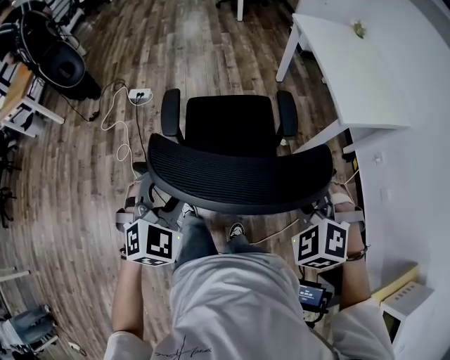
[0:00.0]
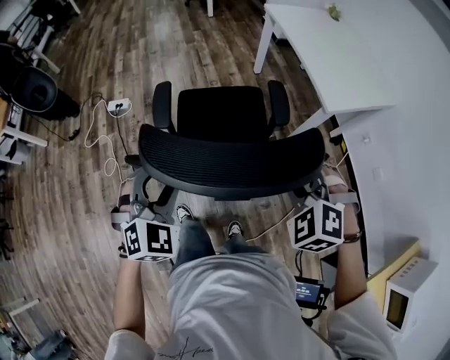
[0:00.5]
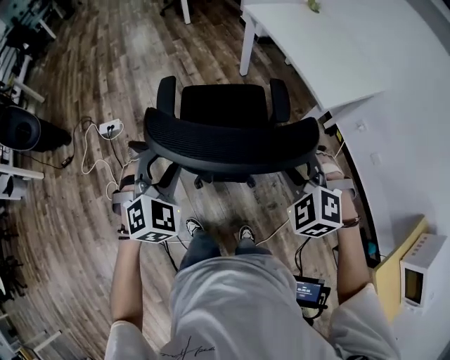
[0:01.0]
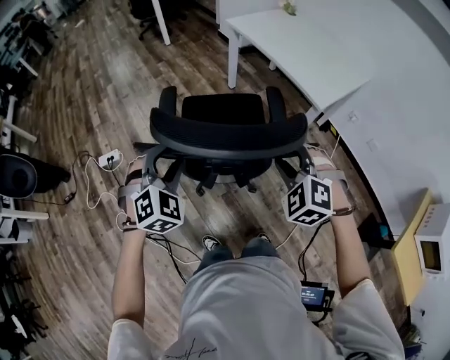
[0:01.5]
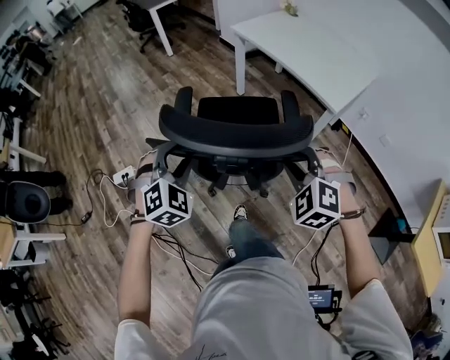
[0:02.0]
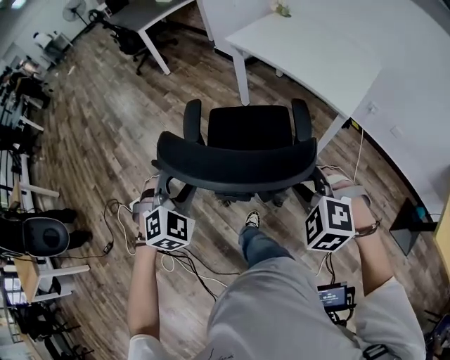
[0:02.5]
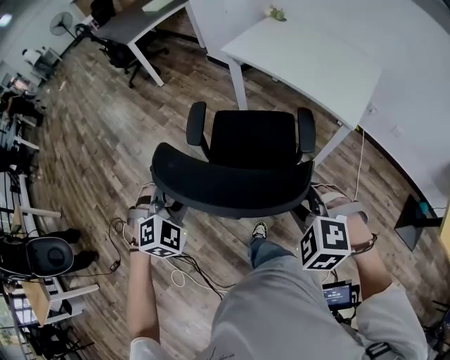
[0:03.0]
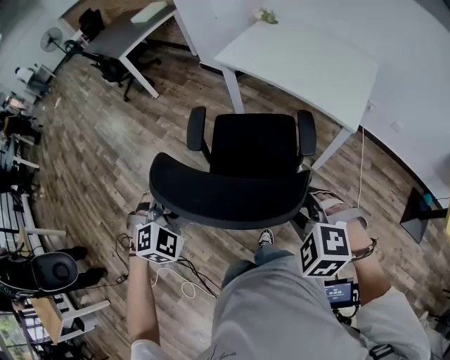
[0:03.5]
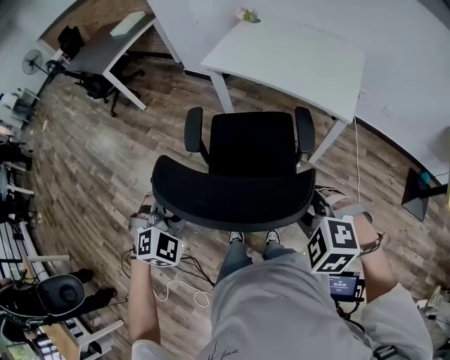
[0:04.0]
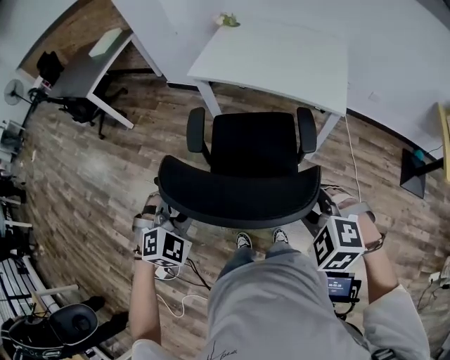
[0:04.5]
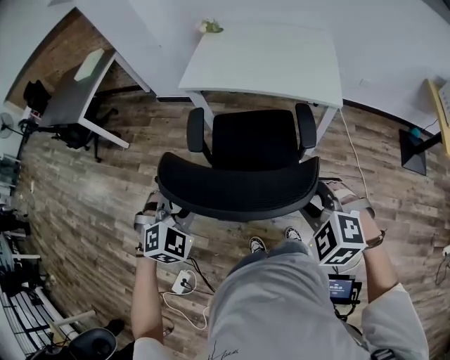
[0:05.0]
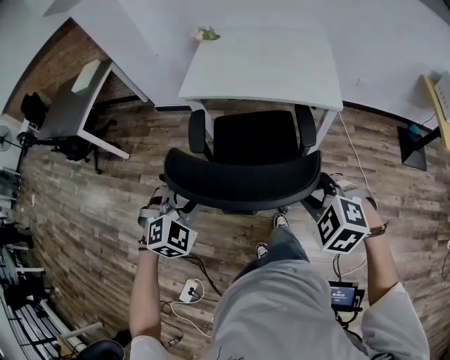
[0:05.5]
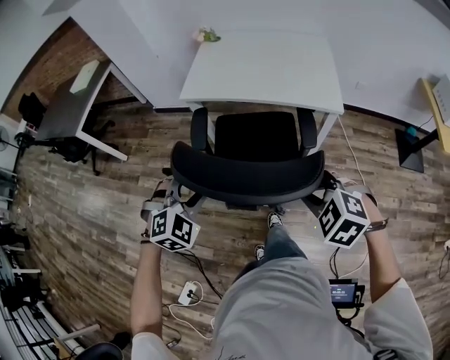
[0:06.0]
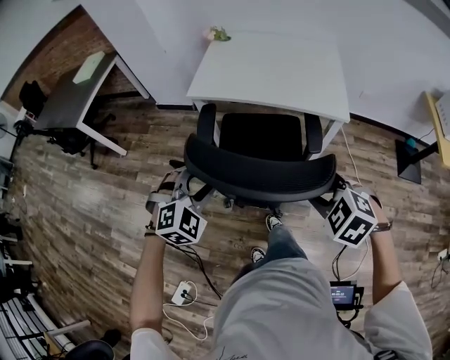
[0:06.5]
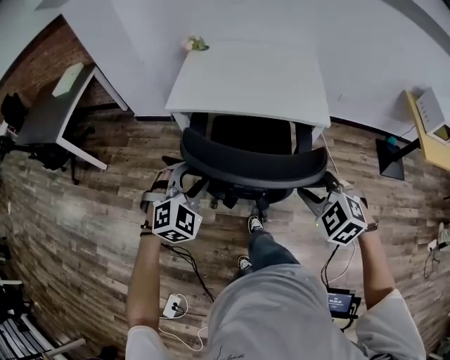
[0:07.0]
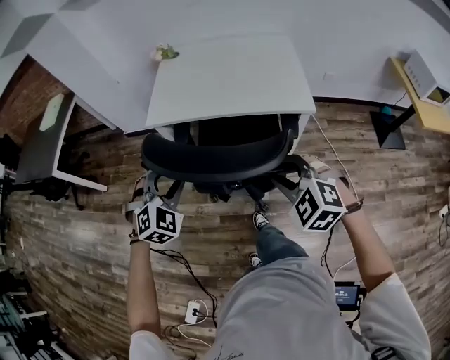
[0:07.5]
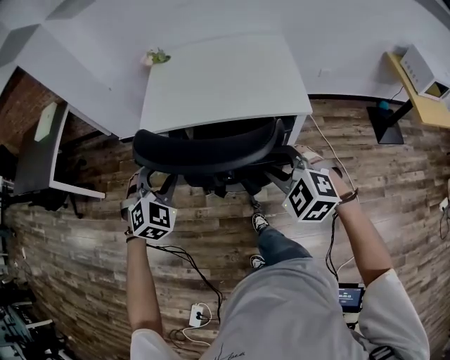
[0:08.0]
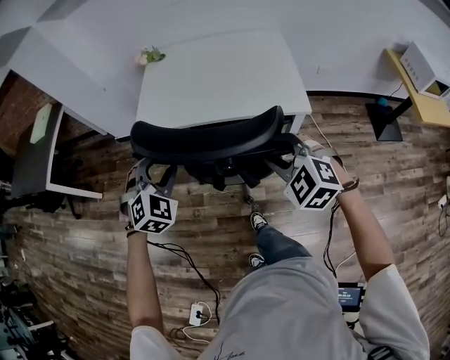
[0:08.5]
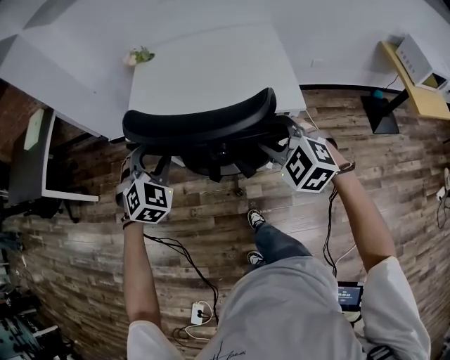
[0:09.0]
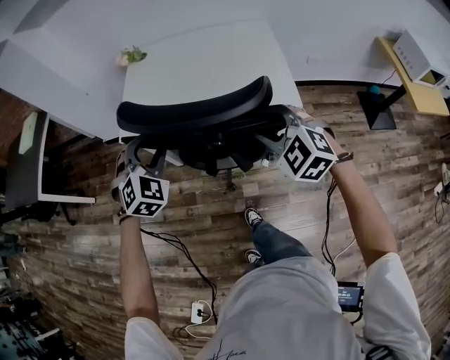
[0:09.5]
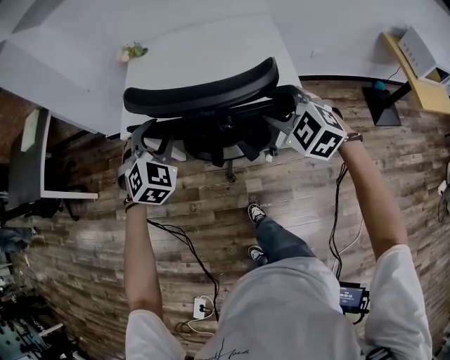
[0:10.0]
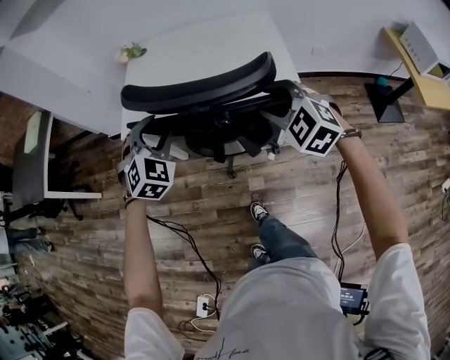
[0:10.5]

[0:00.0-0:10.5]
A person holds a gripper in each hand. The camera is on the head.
0:00.0 to 0:02.0: The two grippers go roughly 30 cm forward and to the left. The right gripper turns by approximately 30 degrees. Meanwhile the left gripper swivels approximately 30 degrees.
0:02.0 to 0:04.0: The right gripper shifts some 20 cm to the left and forward, and changes its angle by approximately 20 degrees; the left gripper is displaced forward and to the left by some 25 cm, and turns by approximately 30 degrees.
0:04.0 to 0:06.5: The right gripper moves forward and to the left, approximately 15 cm, and turns by approximately 30 degrees. The left gripper goes approximately 20 cm forward, and rotates approximately 20 degrees.
0:06.5 to 0:08.5: The grippers both shift forward by roughly 20 cm. The right gripper turns by about 20 degrees.
0:08.5 to 0:10.5: The two grippers go some 15 cm forward and to the right.

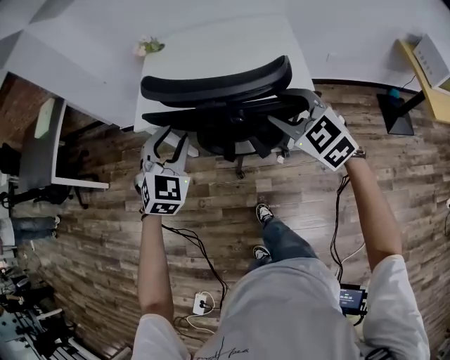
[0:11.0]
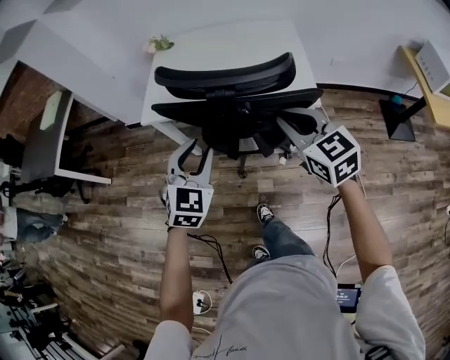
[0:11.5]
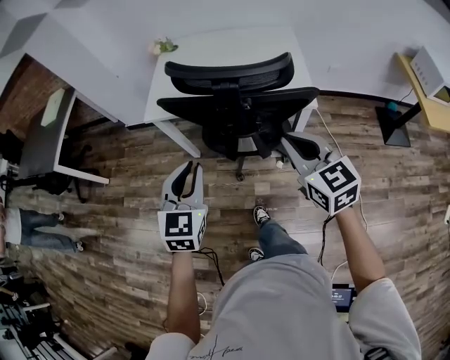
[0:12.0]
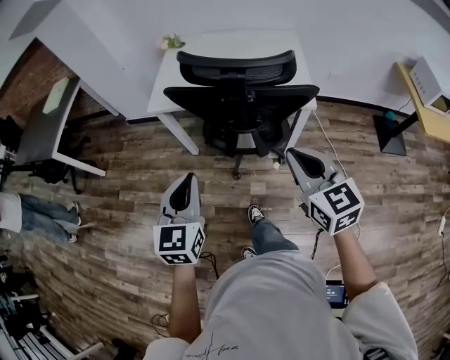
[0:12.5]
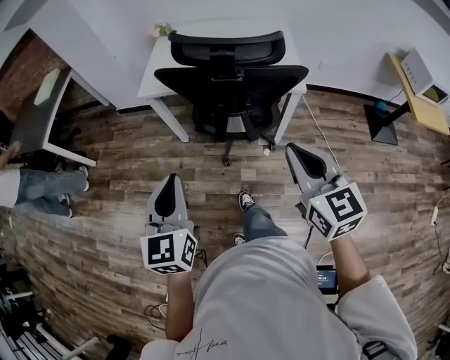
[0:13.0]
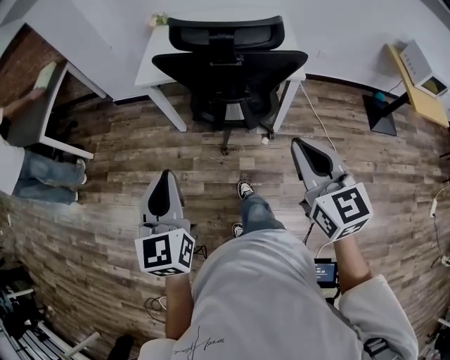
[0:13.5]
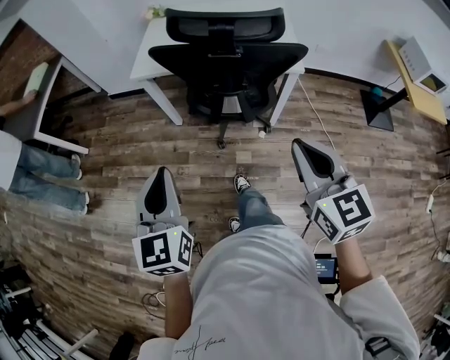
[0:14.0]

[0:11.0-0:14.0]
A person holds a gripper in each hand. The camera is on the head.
0:11.0 to 0:12.5: Both grippers move backward, about 20 cm. The right gripper swivels some 30 degrees, and closes its fingers. The left gripper rolls counterclockwise, seen from behind, by some 40 degrees, and closes up.
0:12.5 to 0:14.0: The two grippers go roughly 10 cm backward.

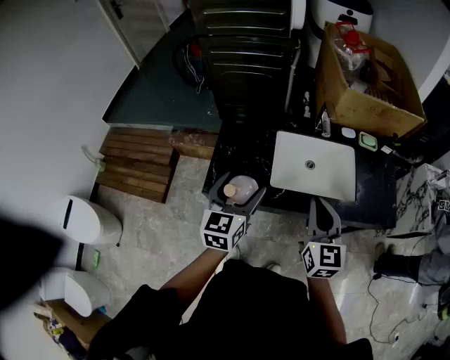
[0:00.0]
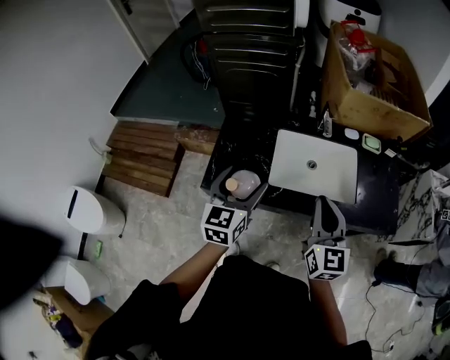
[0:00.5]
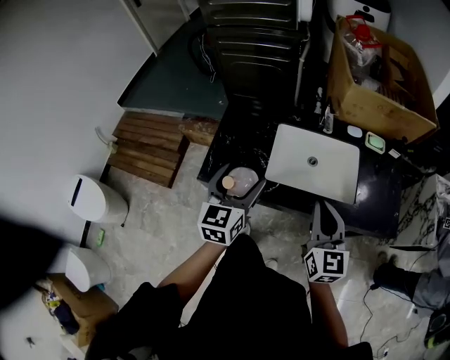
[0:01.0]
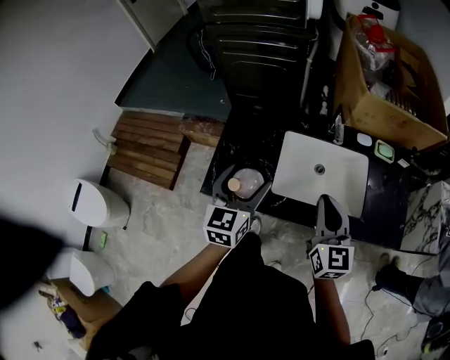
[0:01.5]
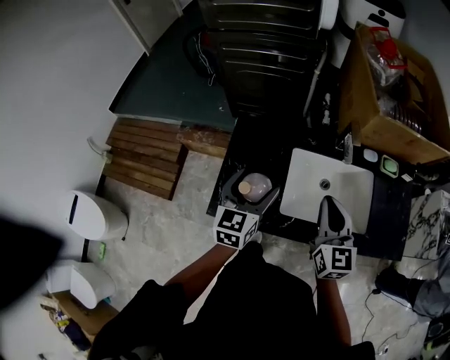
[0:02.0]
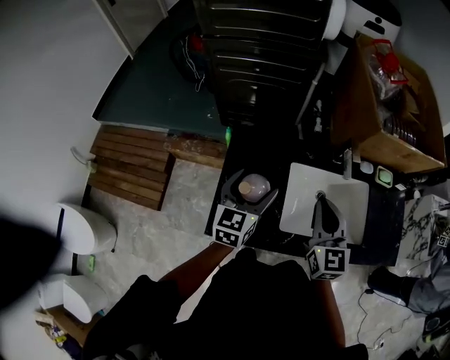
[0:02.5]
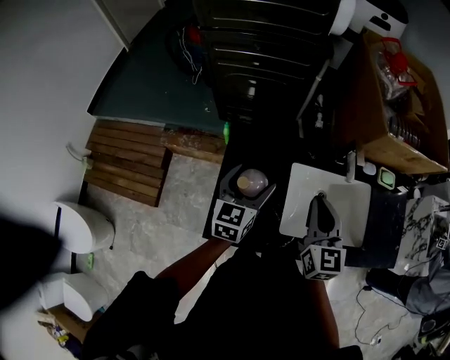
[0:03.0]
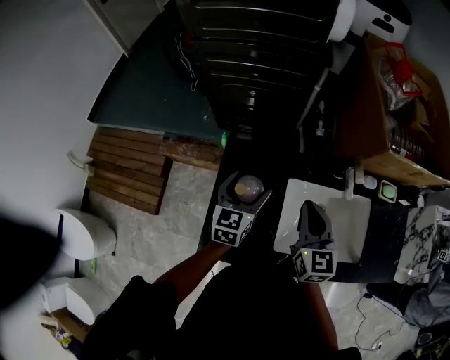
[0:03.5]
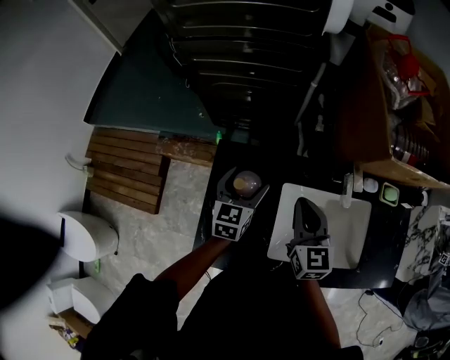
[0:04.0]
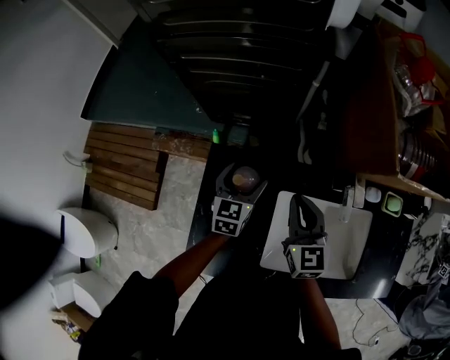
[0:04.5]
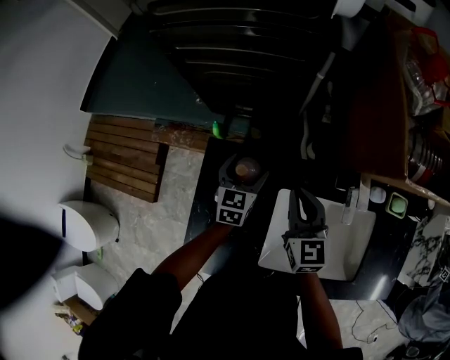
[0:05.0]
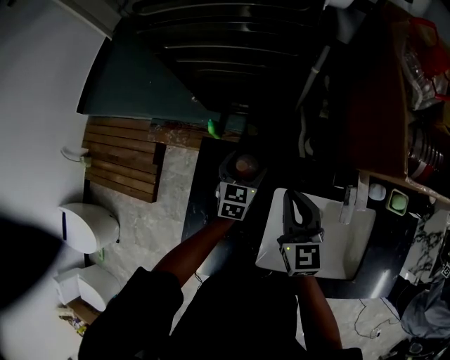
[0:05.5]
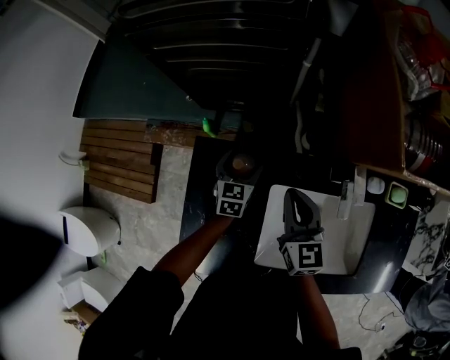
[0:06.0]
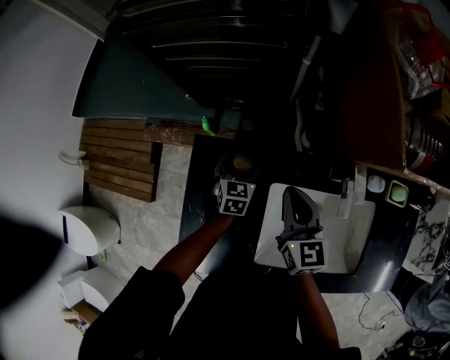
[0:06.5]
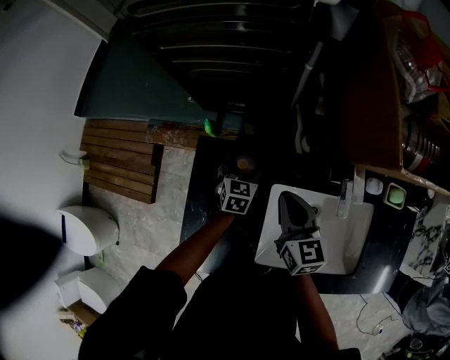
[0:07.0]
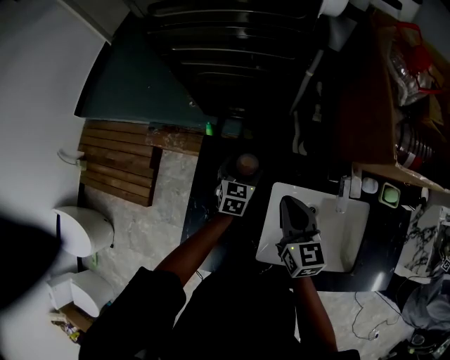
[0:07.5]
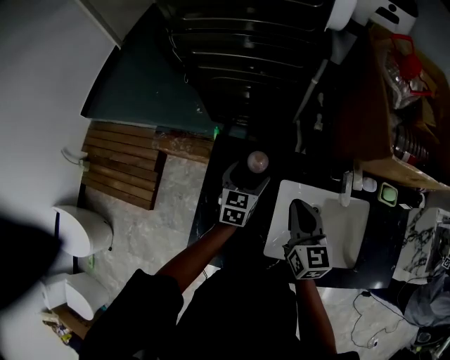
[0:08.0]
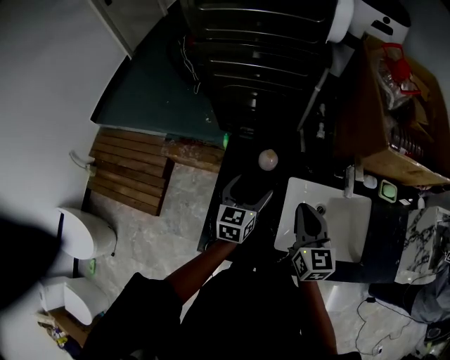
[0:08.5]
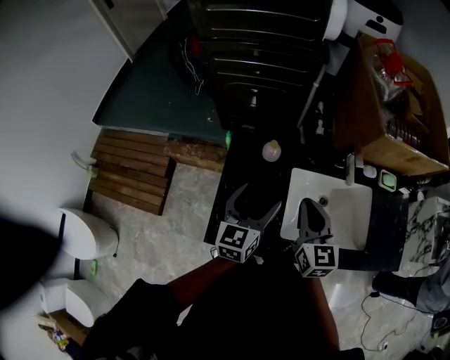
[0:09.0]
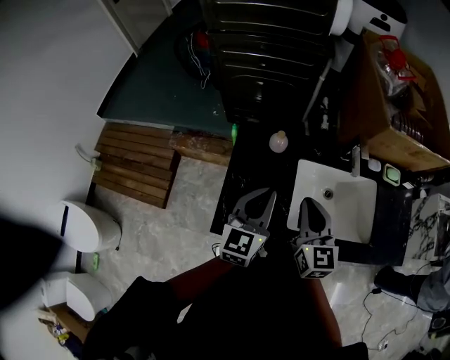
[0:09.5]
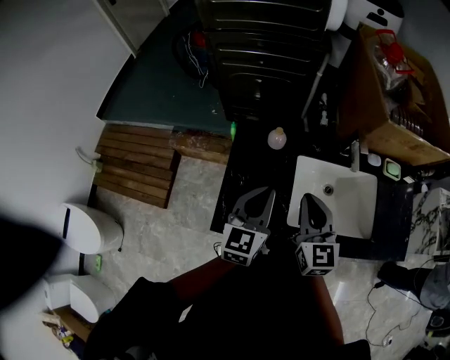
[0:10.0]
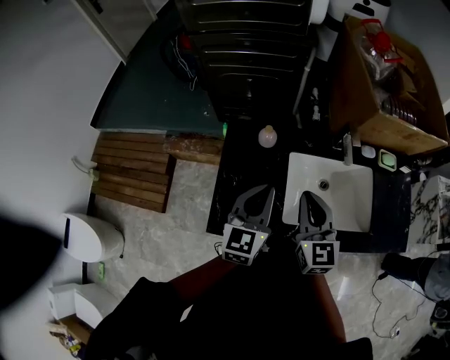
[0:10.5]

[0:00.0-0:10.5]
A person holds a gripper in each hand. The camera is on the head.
0:00.0 to 0:02.0: Both grippers travel together forward, approximately 15 cm.
0:02.0 to 0:04.0: Both grippers move forward and downward, about 20 cm.
0:04.0 to 0:06.5: The right gripper heads forward and downward, covering roughly 10 cm, while the left gripper travels downward and forward by roughly 20 cm.
0:06.5 to 0:08.5: The left gripper shifts some 20 cm upward and backward, and turns by roughly 20 degrees. The right gripper travels backward and upward by about 15 cm.
0:08.5 to 0:10.5: The right gripper shifts approximately 10 cm backward; the left gripper travels backward and upward by about 15 cm, and closes.

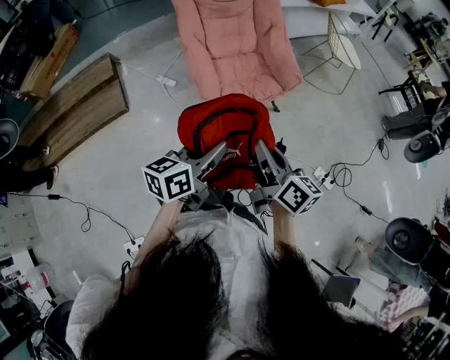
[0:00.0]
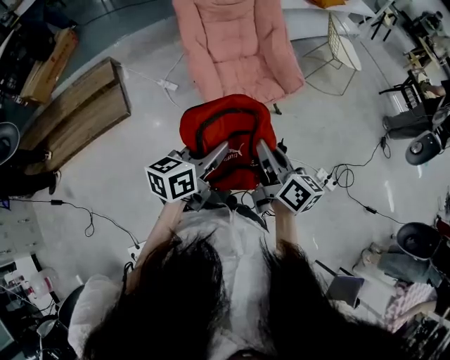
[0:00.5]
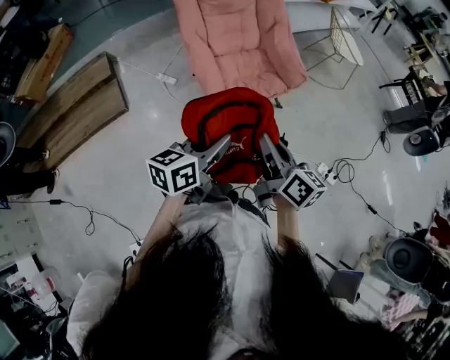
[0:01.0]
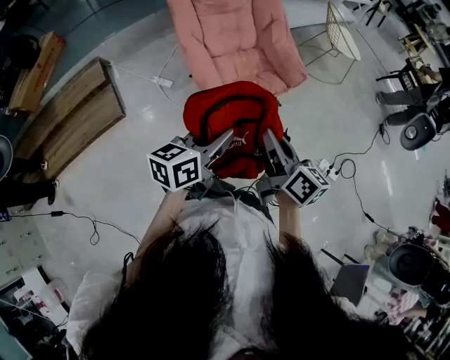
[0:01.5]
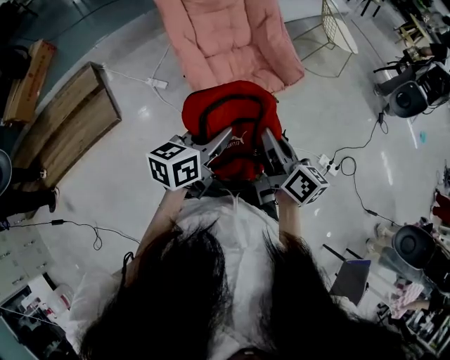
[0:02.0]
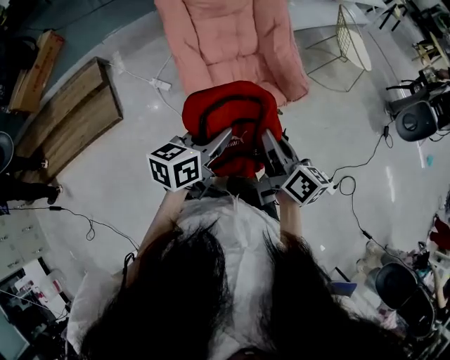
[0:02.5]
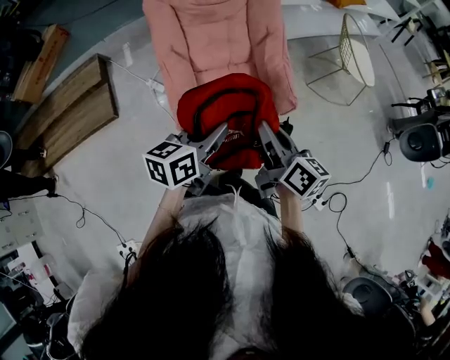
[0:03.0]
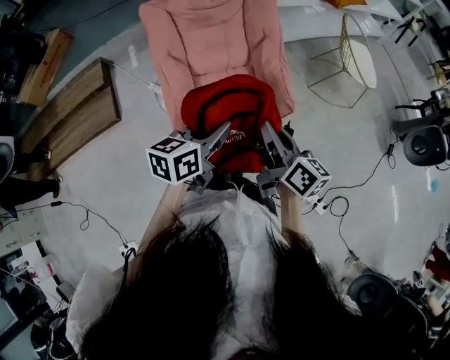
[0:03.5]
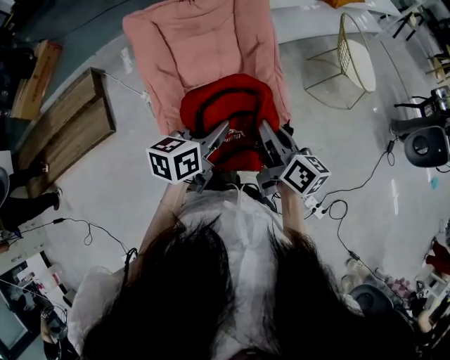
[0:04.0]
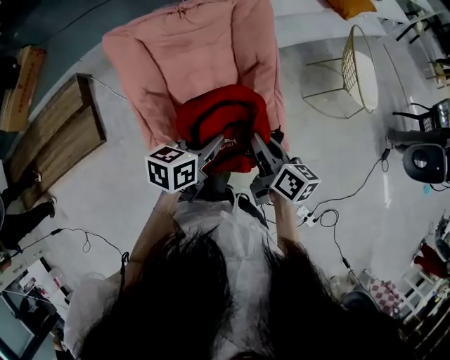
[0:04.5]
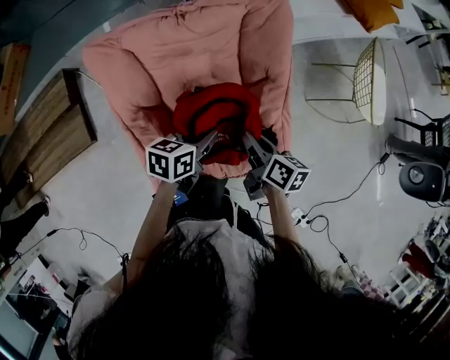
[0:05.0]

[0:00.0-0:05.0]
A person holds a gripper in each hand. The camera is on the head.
0:00.0 to 0:02.5: Both grippers move forward, roughly 20 cm.
0:02.5 to 0:05.0: The two grippers travel together, forward, about 50 cm. The right gripper turns by roughly 20 degrees. The left gripper turns by about 20 degrees.
